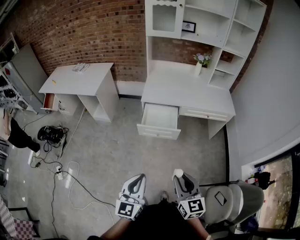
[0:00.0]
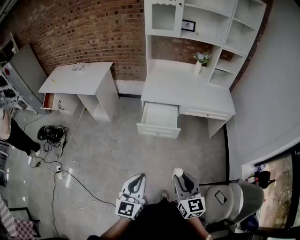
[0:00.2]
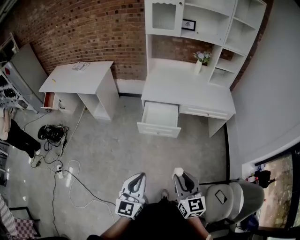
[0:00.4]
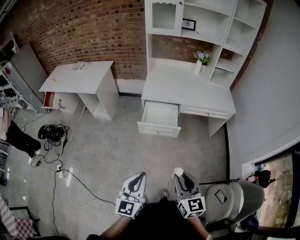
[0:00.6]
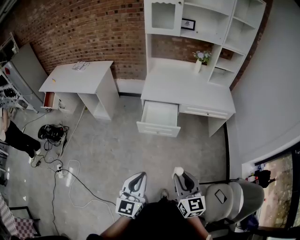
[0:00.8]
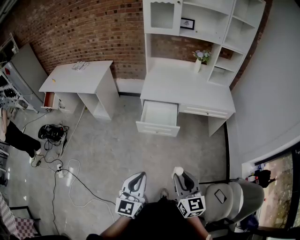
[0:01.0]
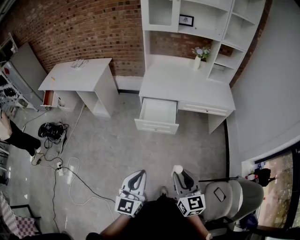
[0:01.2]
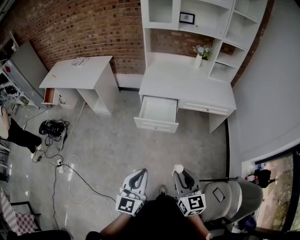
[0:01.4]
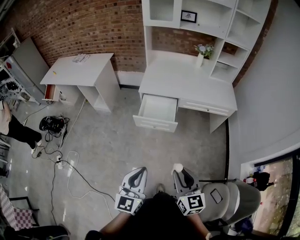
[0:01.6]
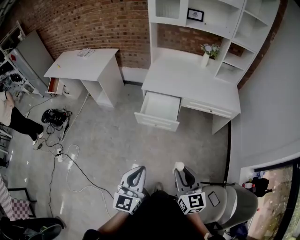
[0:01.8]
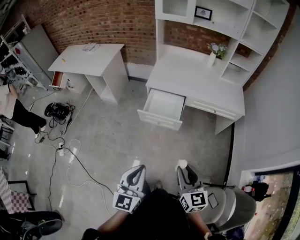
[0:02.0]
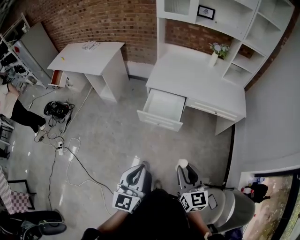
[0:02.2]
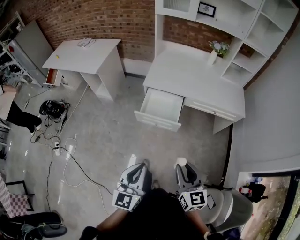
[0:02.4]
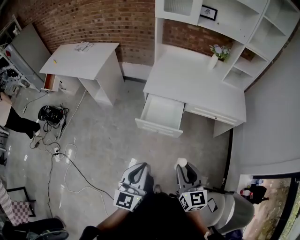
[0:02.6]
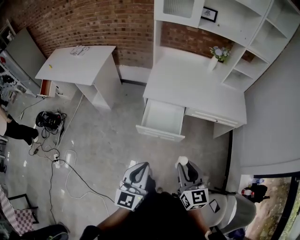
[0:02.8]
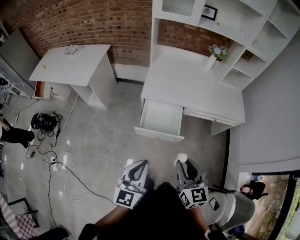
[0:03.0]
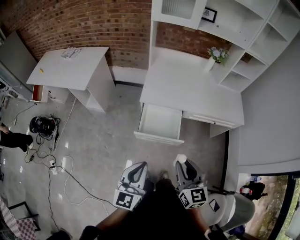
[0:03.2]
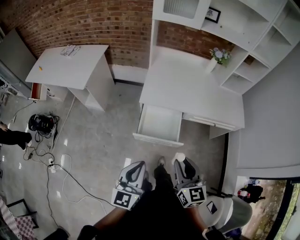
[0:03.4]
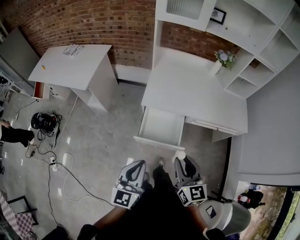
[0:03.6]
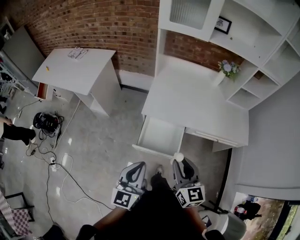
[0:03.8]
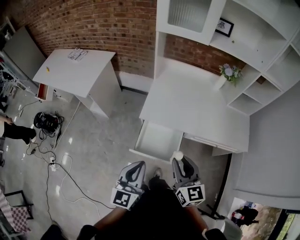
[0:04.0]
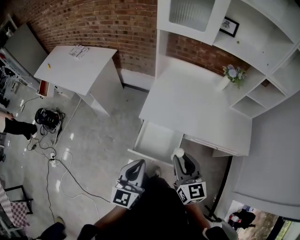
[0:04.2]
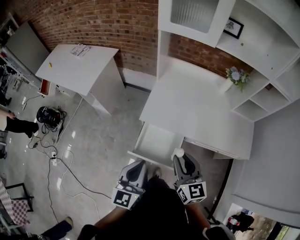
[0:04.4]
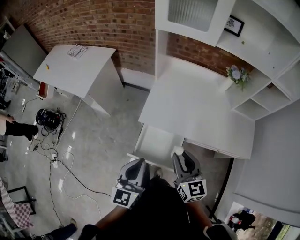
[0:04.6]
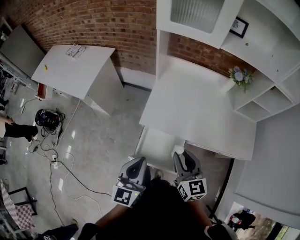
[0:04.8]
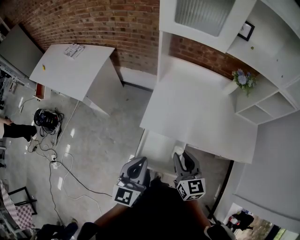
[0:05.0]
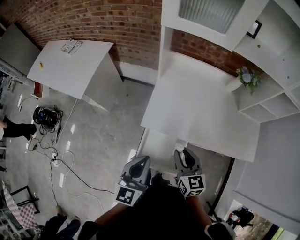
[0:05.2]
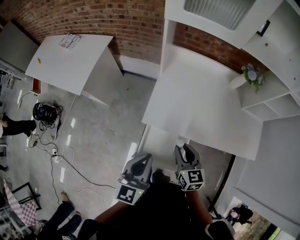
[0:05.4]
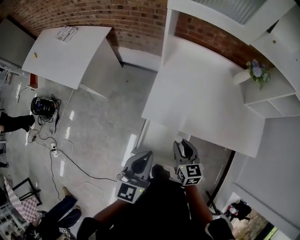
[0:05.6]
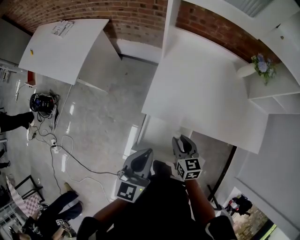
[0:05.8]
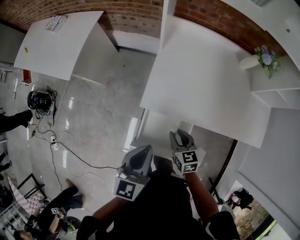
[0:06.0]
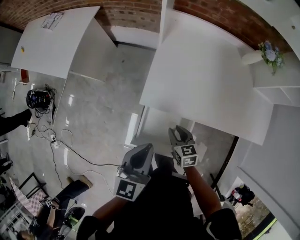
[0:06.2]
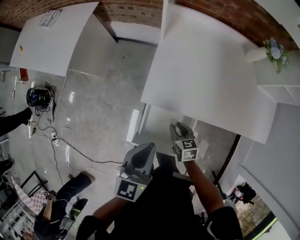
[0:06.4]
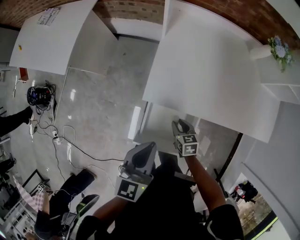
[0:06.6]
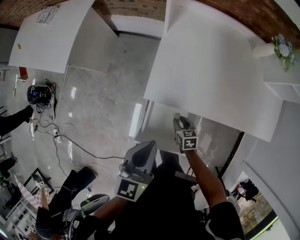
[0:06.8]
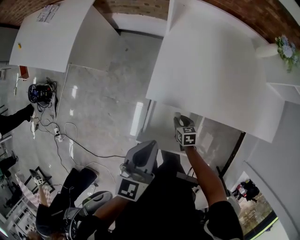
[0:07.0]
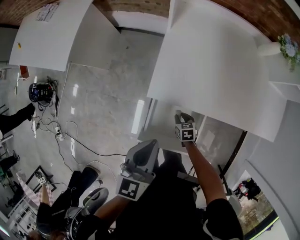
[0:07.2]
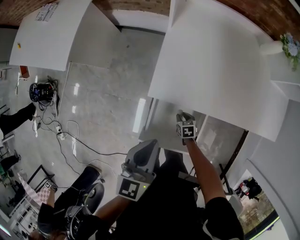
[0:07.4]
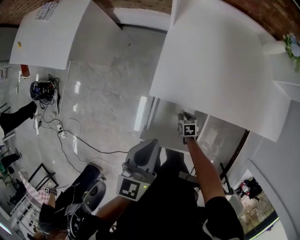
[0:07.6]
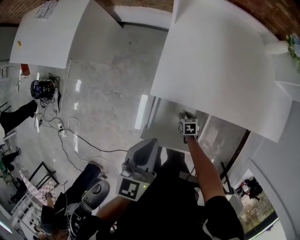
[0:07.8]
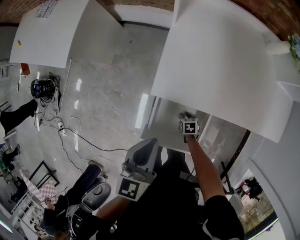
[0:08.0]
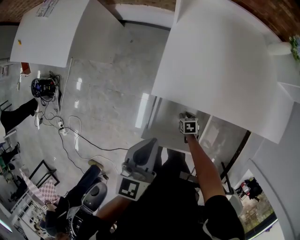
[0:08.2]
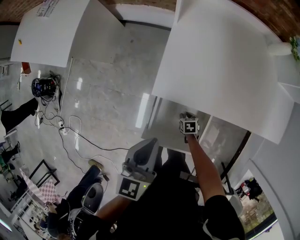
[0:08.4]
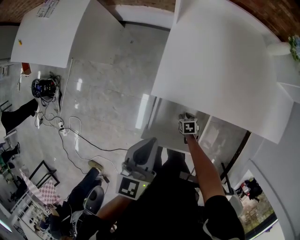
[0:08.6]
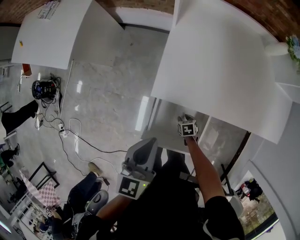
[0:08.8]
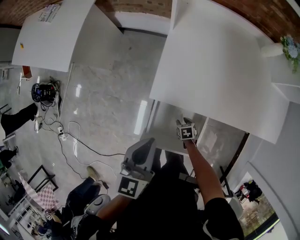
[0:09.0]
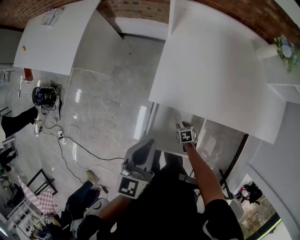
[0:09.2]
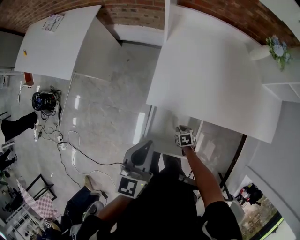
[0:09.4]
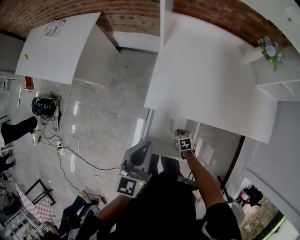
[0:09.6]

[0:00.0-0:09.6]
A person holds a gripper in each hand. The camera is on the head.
0:00.0 to 0:01.6: The two grippers go some 5 cm to the right.
0:01.6 to 0:03.2: Both grippers move forward, some 25 cm.
0:03.2 to 0:04.8: The grippers both shift forward by some 30 cm.
0:04.8 to 0:06.4: The right gripper is displaced downward by about 35 cm, and tilts its fingers approximately 30 degrees downward; the left gripper travels downward and forward by approximately 15 cm.
0:06.4 to 0:08.0: The right gripper goes some 25 cm downward, and swivels roughly 20 degrees, while the left gripper shifts by roughly 5 cm.
0:08.0 to 0:09.6: The right gripper goes approximately 10 cm upward, and closes up; the left gripper ends up roughly 5 cm from where it was.

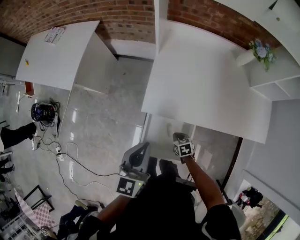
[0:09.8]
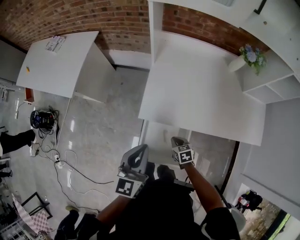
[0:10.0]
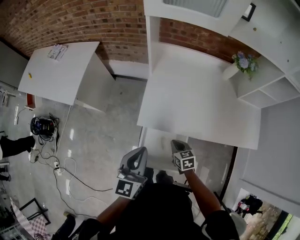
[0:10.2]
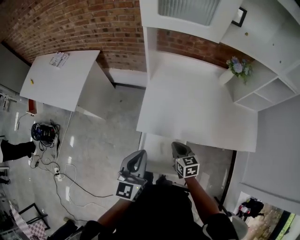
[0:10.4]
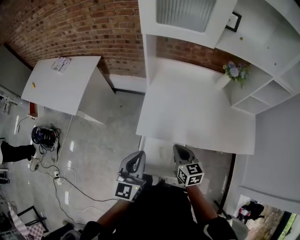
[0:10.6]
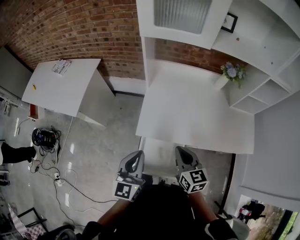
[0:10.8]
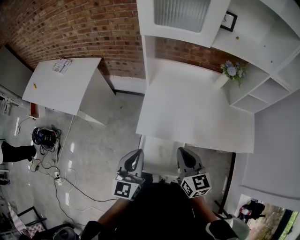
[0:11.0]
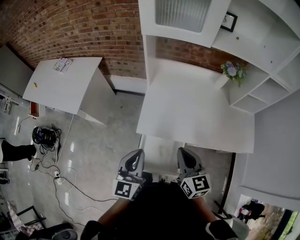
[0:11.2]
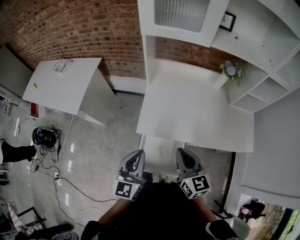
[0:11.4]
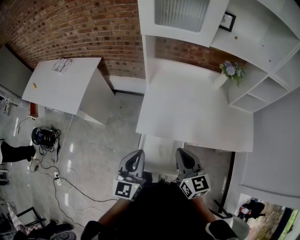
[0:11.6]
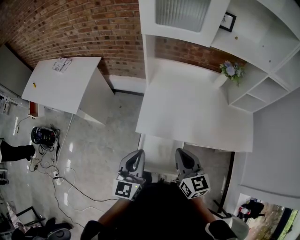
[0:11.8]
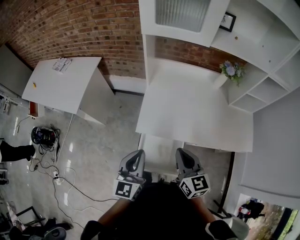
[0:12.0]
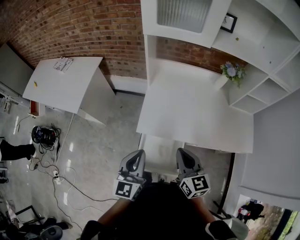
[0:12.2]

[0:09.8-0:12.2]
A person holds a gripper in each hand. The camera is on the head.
0:09.8 to 0:11.0: The right gripper shifts about 40 cm upward, and tilts its fingers some 40 degrees upward. Meanwhile the left gripper shifts approximately 10 cm upward.
0:11.0 to 0:12.2: The grippers stay close to where they were, moving slightly.

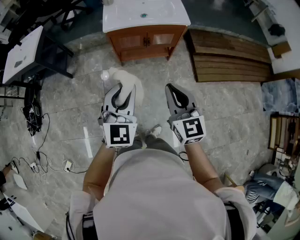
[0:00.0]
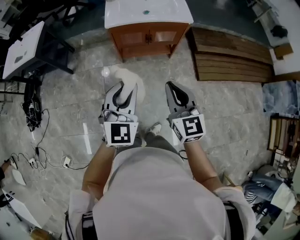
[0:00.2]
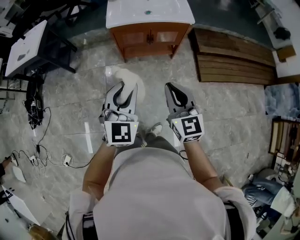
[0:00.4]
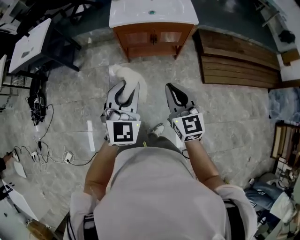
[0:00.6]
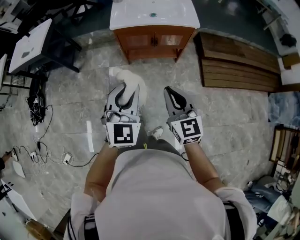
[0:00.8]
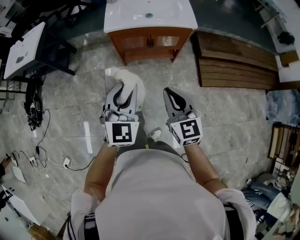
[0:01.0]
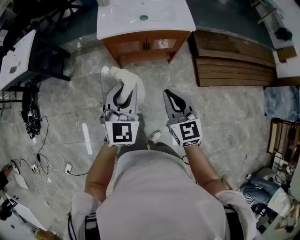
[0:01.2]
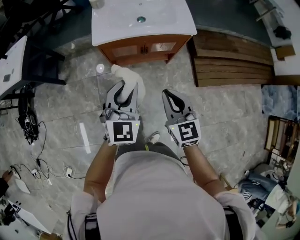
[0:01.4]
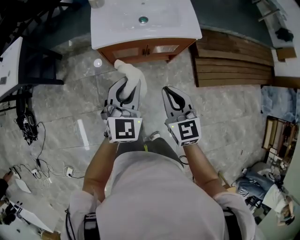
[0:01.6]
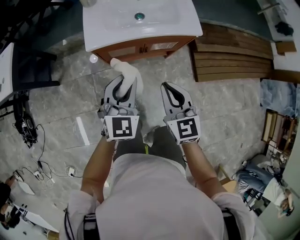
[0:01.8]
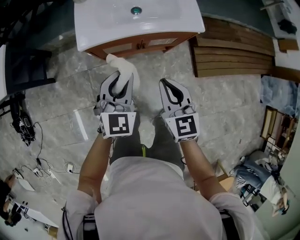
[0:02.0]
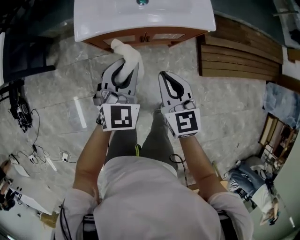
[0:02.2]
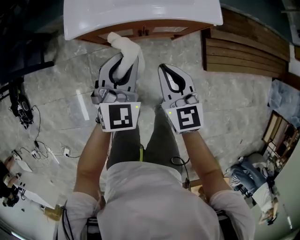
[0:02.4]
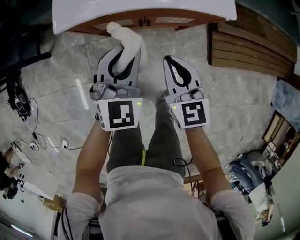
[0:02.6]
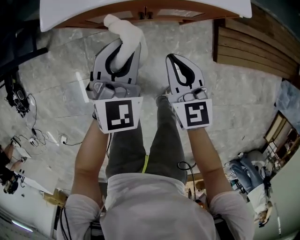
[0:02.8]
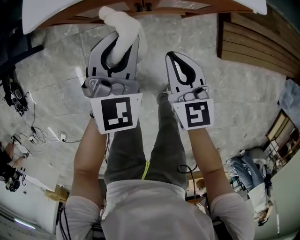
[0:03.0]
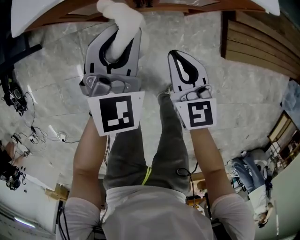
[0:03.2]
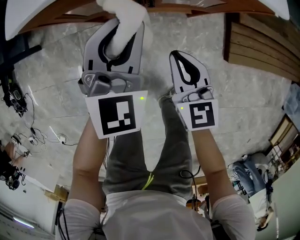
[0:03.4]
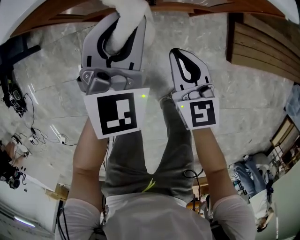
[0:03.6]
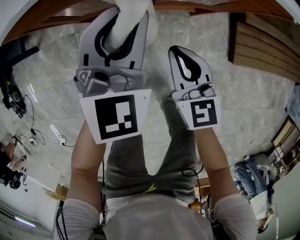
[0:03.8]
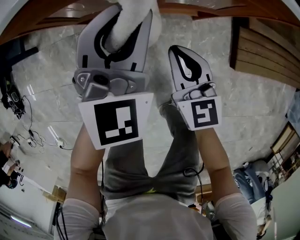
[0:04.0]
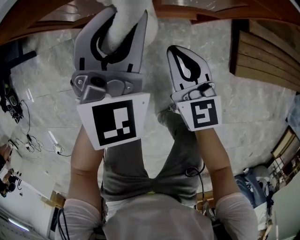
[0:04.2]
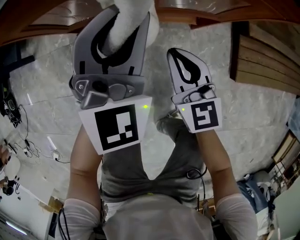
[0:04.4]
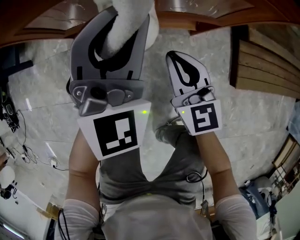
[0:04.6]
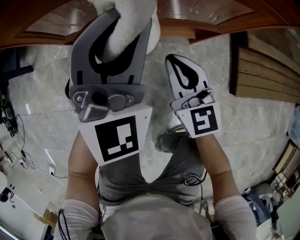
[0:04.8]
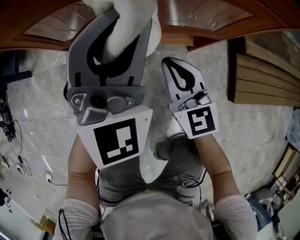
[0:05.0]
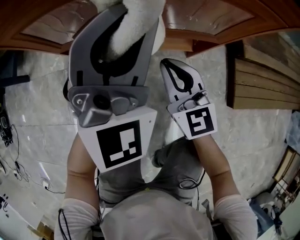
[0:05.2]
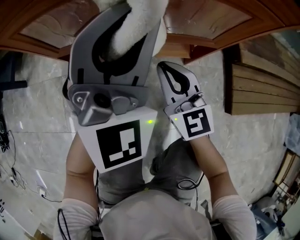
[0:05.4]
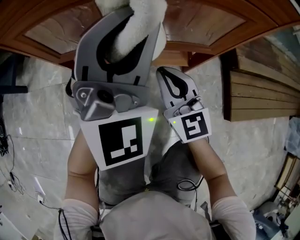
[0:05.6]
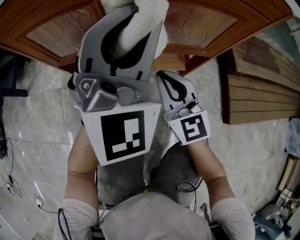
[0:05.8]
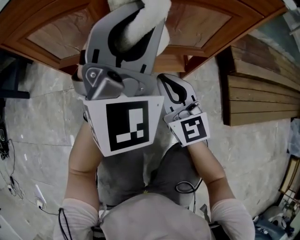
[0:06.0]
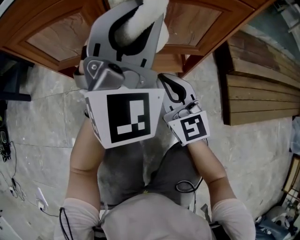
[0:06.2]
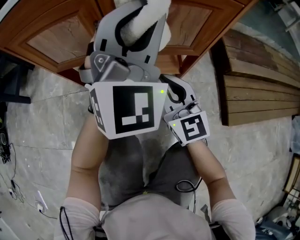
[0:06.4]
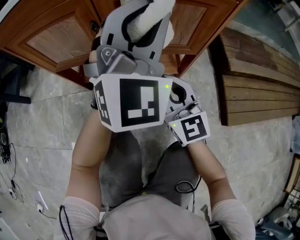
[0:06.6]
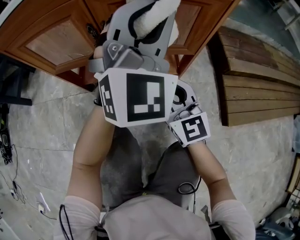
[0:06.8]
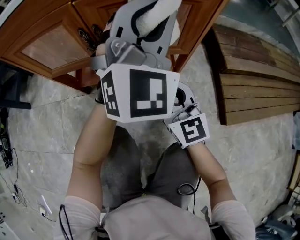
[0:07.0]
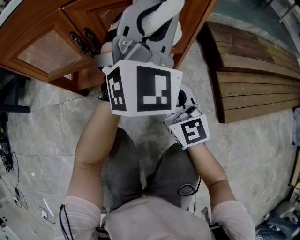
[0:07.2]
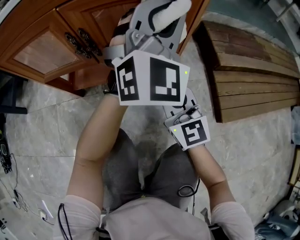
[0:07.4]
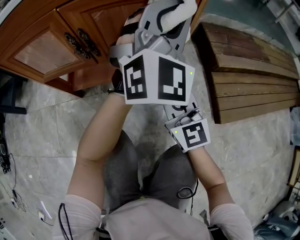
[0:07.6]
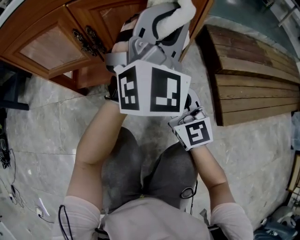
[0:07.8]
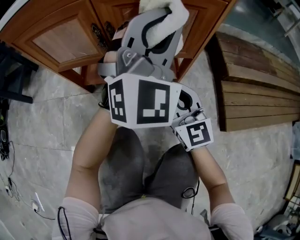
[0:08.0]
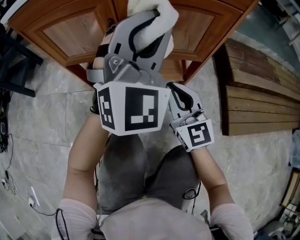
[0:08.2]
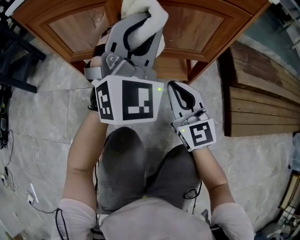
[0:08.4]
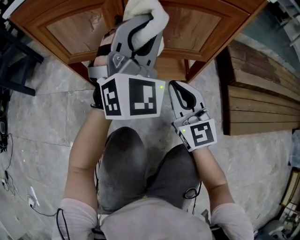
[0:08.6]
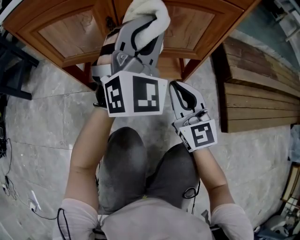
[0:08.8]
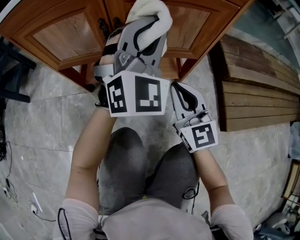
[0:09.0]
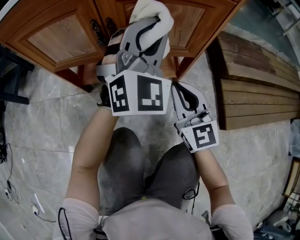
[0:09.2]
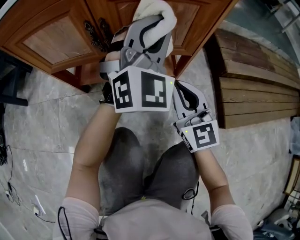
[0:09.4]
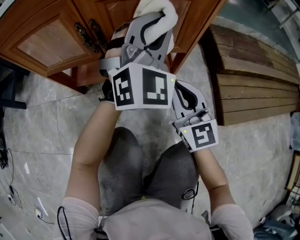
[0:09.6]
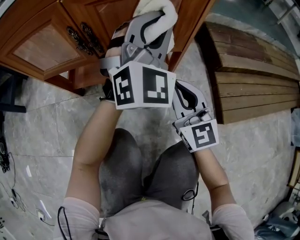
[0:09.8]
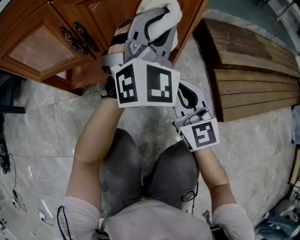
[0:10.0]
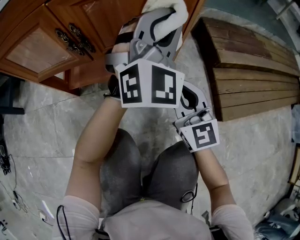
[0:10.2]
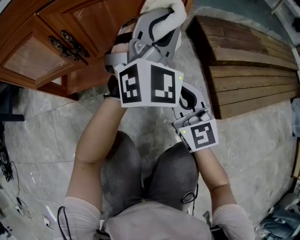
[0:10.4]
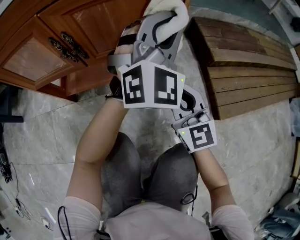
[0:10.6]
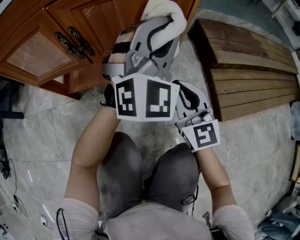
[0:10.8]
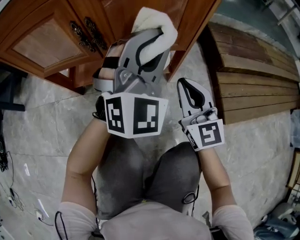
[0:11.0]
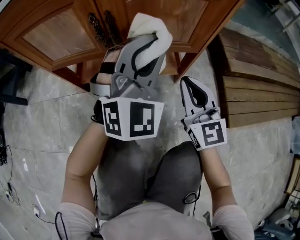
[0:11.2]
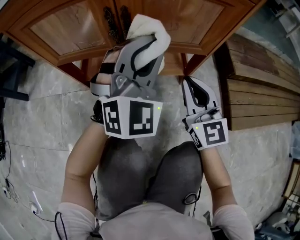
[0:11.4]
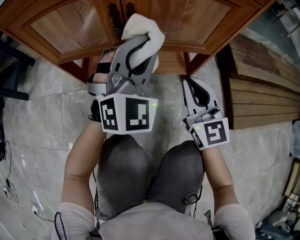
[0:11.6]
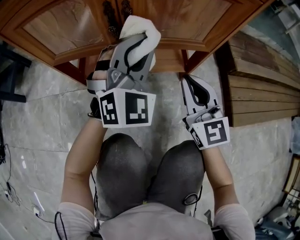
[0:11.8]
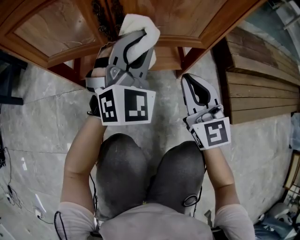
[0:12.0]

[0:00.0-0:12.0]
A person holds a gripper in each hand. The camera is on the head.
0:00.0 to 0:01.6: The two grippers go some 30 cm forward.
0:01.6 to 0:03.0: Both grippers travel together downward and forward, approximately 35 cm.
0:03.0 to 0:04.4: Both grippers move downward, approximately 20 cm.
0:04.4 to 0:06.0: The right gripper travels downward by some 5 cm. Meanwhile the left gripper changes place by some 5 cm, and rotates approximately 20 degrees.
0:06.0 to 0:07.6: The right gripper is displaced to the right by some 10 cm. Meanwhile the left gripper moves to the right, some 20 cm.
0:07.6 to 0:09.0: The left gripper travels to the left by about 15 cm.
0:09.0 to 0:10.4: The left gripper goes some 15 cm to the right. The right gripper heads to the right, covering roughly 10 cm.
0:10.4 to 0:12.0: The left gripper goes some 20 cm to the left and downward. The right gripper is displaced to the left by about 10 cm.
